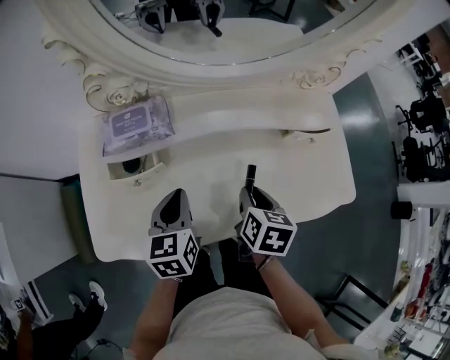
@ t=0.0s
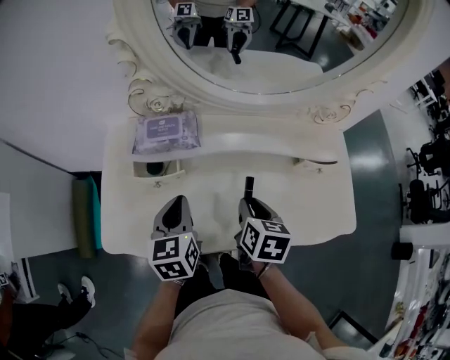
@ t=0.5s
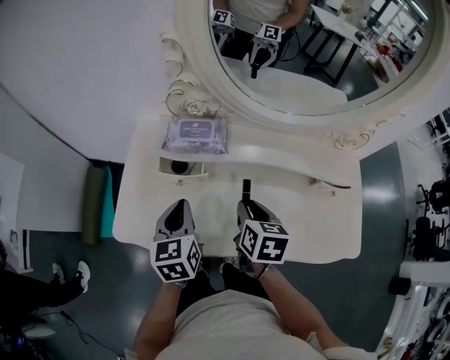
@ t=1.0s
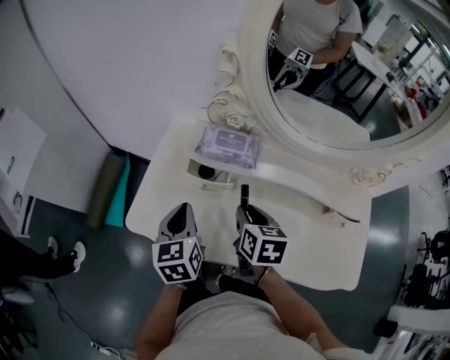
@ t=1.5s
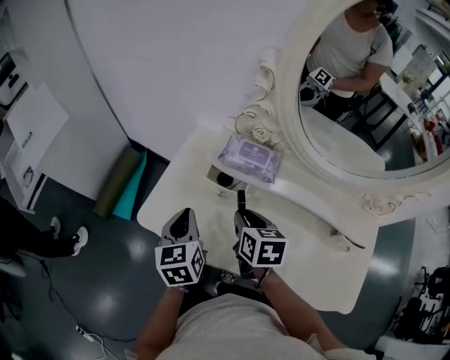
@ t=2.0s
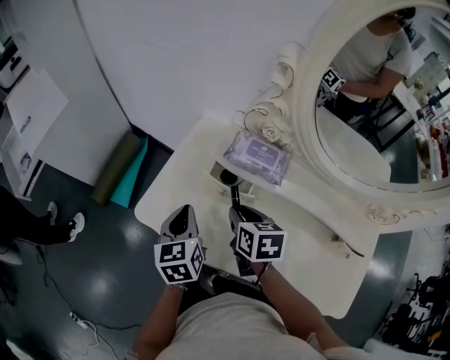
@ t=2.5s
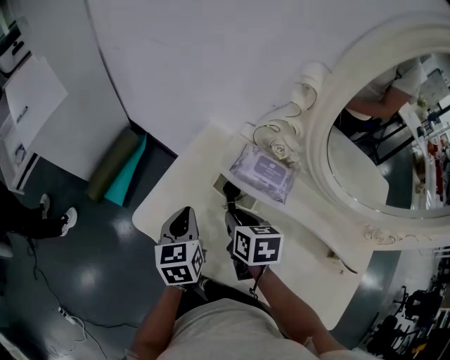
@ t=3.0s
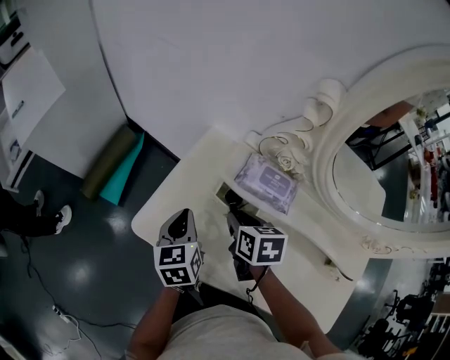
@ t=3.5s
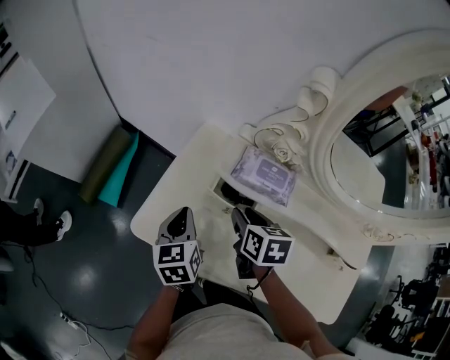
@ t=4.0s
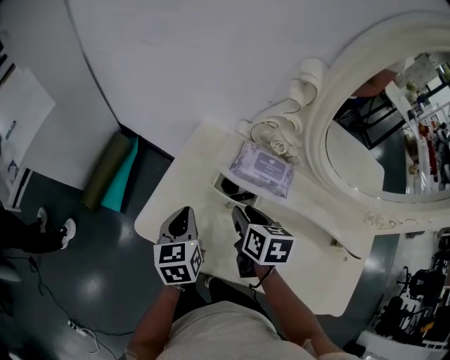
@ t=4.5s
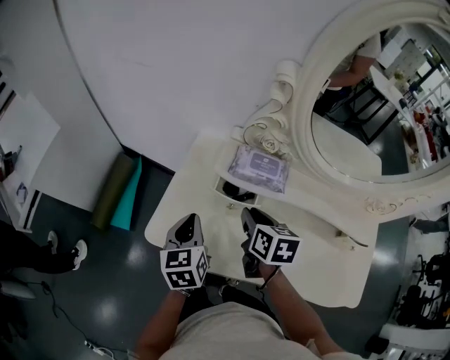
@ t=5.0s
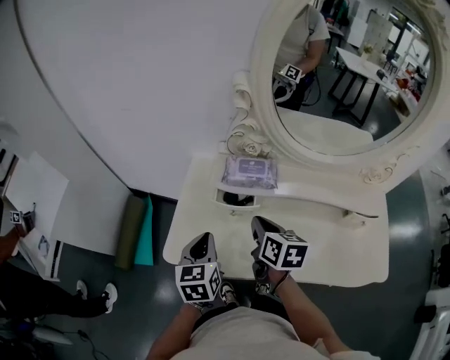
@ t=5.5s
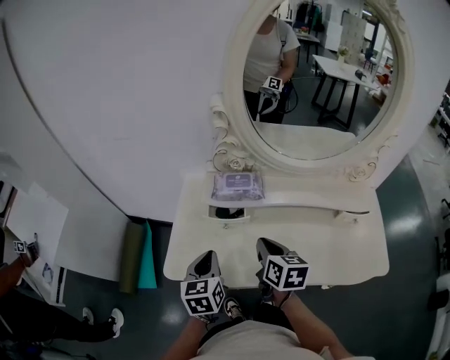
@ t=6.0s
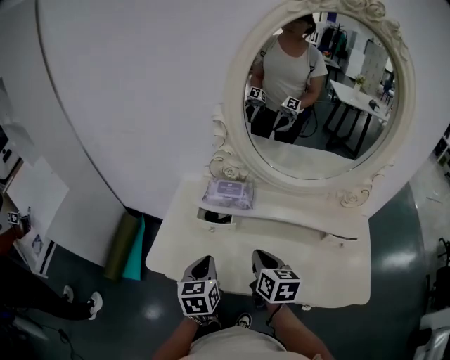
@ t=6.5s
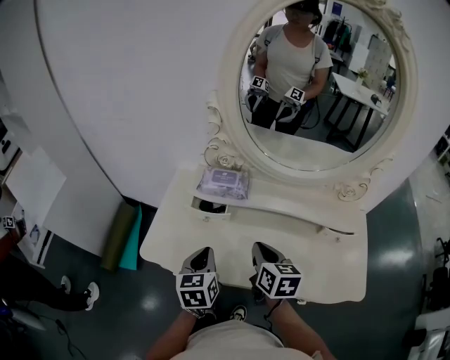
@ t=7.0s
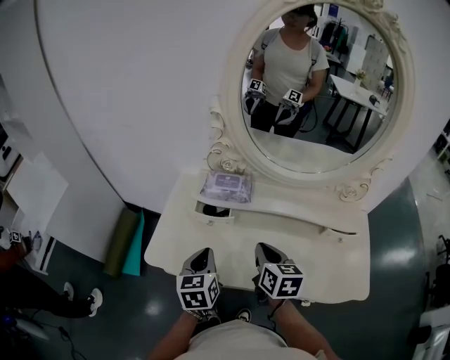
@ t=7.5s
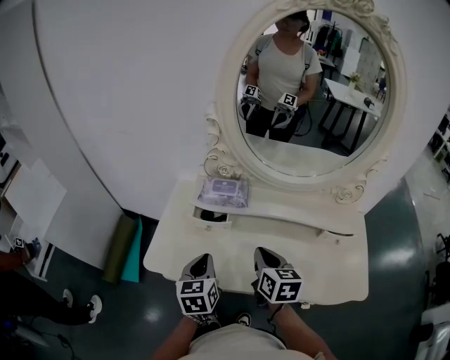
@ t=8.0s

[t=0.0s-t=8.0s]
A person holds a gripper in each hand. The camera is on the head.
t=0.0s to t=2.0s: The left gripper ends up approximately 20 cm from where it was, and swivels about 40 degrees; the right gripper shifts by some 25 cm, and turns by some 50 degrees.
t=2.0s to t=4.0s: The left gripper moves forward and downward, about 10 cm. Meanwhile the right gripper is displaced forward by roughly 5 cm.
t=4.0s to t=6.0s: Both grippers move backward and upward, roughly 10 cm. The right gripper rotates roughly 30 degrees, and closes up, while the left gripper rotates about 30 degrees.
t=6.0s to t=8.0s: The two grippers go approximately 5 cm to the right.

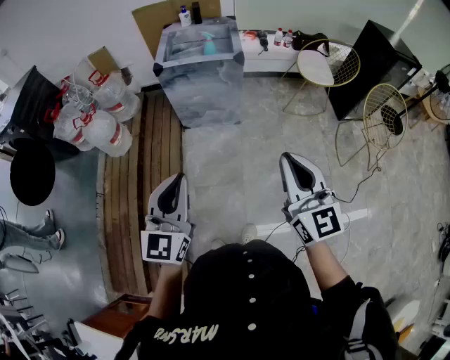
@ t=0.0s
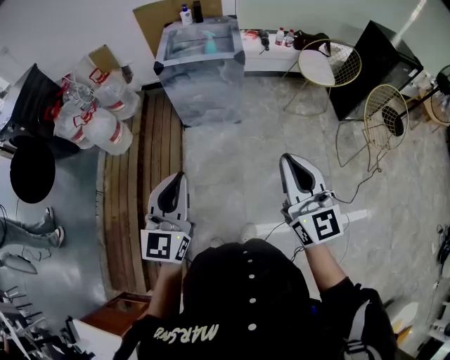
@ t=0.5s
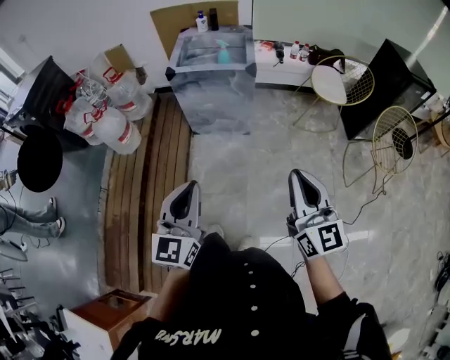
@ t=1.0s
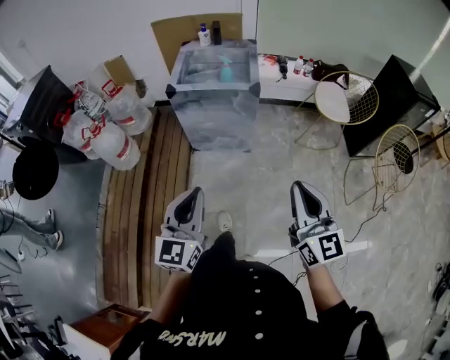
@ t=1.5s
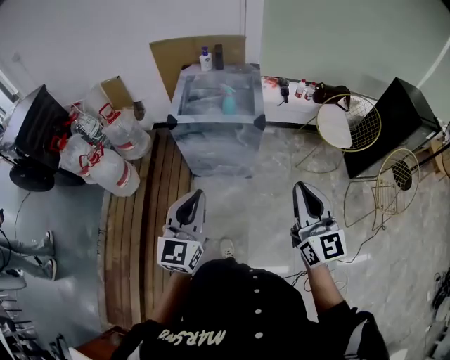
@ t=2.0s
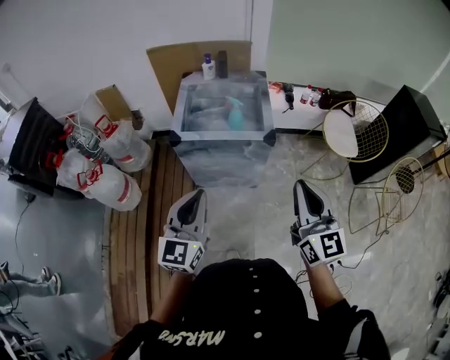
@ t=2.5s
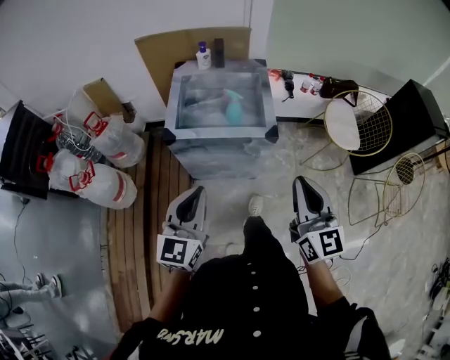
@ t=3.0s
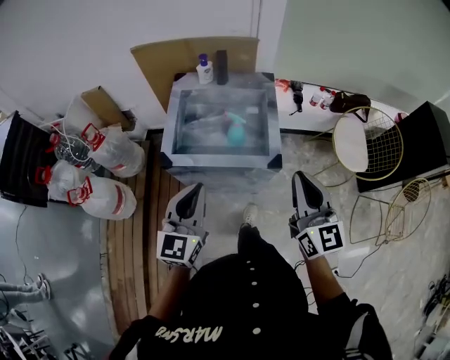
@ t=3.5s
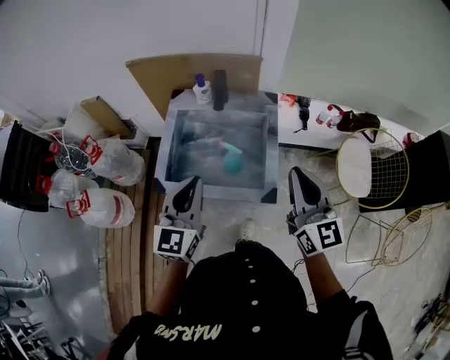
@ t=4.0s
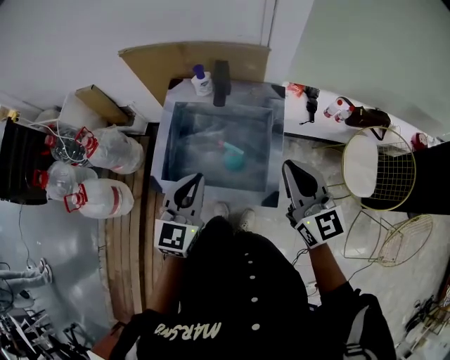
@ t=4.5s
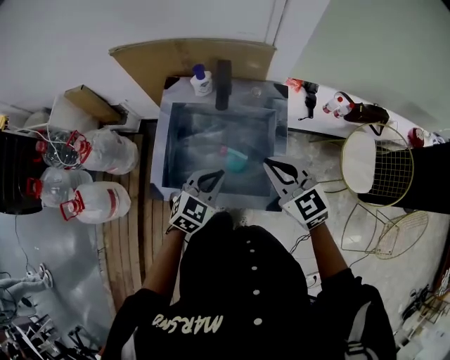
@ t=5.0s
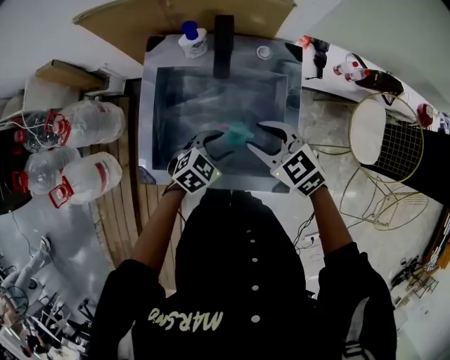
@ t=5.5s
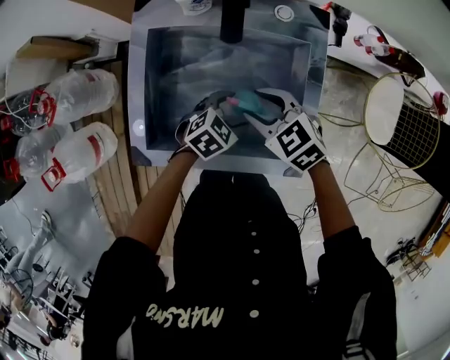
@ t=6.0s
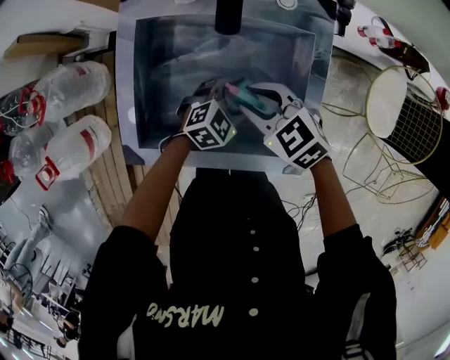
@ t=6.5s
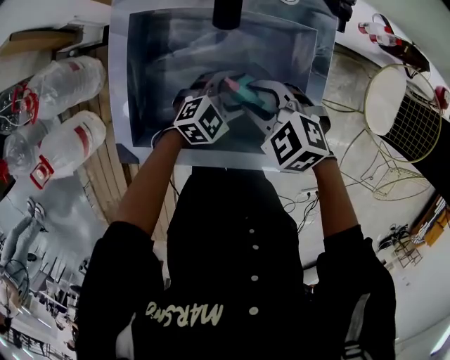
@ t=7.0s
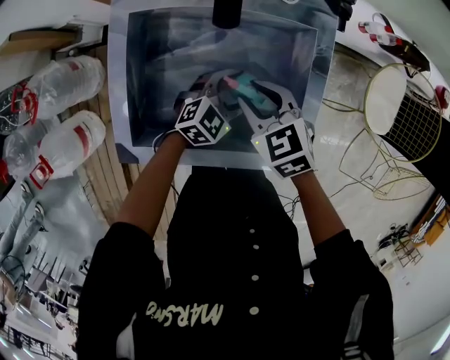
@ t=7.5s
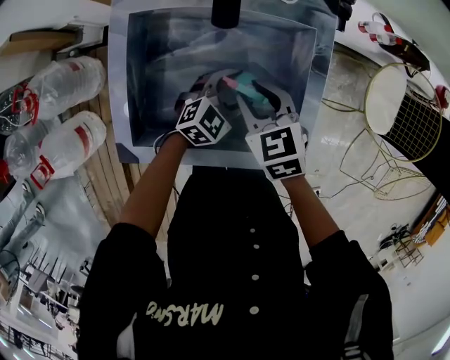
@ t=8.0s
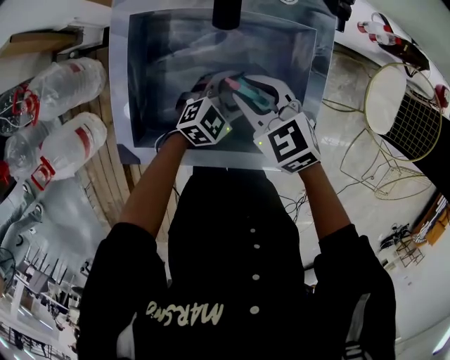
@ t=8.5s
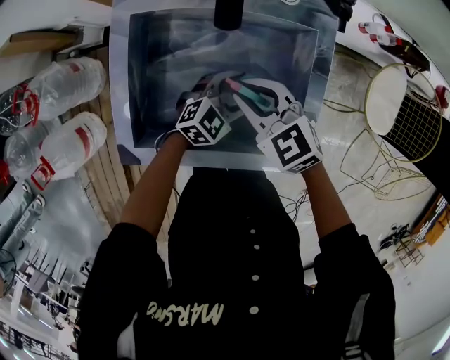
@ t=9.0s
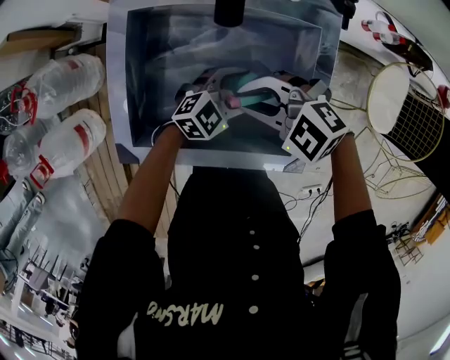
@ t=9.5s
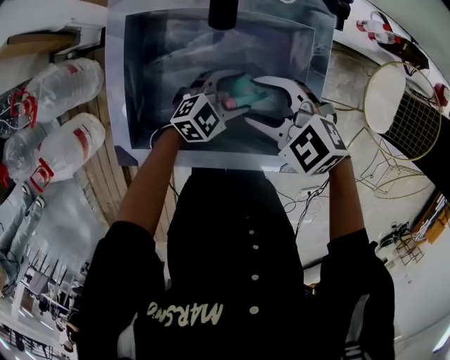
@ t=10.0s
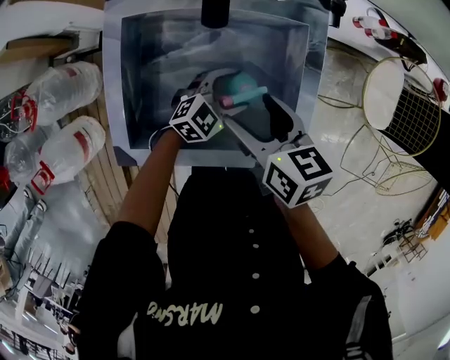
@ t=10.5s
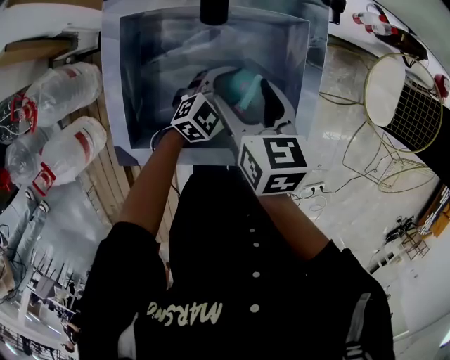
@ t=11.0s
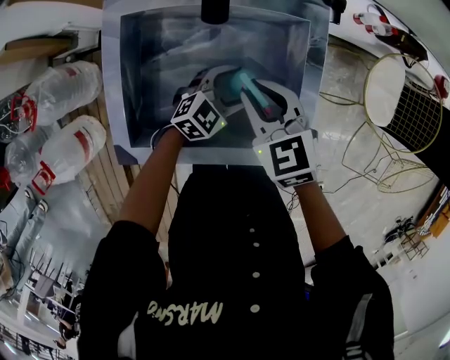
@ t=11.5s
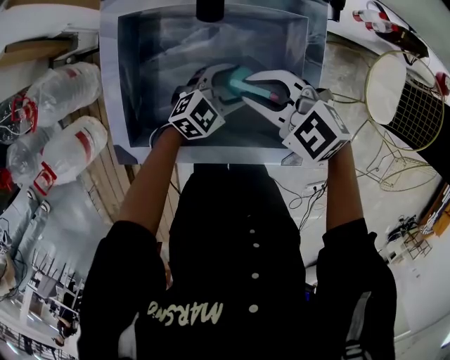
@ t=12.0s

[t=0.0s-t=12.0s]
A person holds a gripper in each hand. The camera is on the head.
t=0.0s to t=2.0s: The two grippers go about 25 cm forward.
t=2.0s to t=4.0s: The pair of grippers is taken forward, some 50 cm.
t=4.0s to t=6.0s: The two grippers go about 35 cm downward. The left gripper tilts its fingers some 50 degrees downward, and opens its fingers; the right gripper tilts its fingers roughly 50 degrees downward, and opens its fingers.
t=6.0s to t=8.0s: The right gripper swivels about 20 degrees.
t=8.0s to t=10.0s: The right gripper turns by about 40 degrees, and opens up.
t=10.0s to t=12.0s: The right gripper closes up.

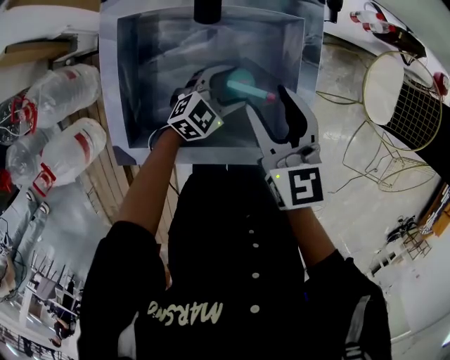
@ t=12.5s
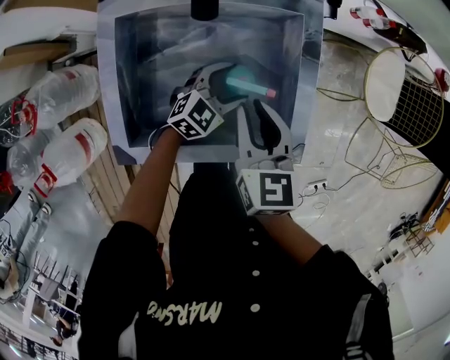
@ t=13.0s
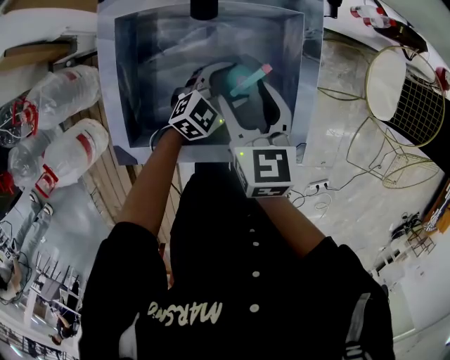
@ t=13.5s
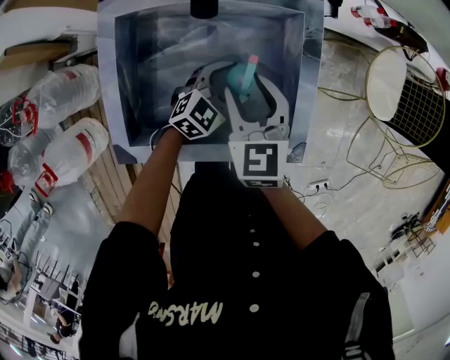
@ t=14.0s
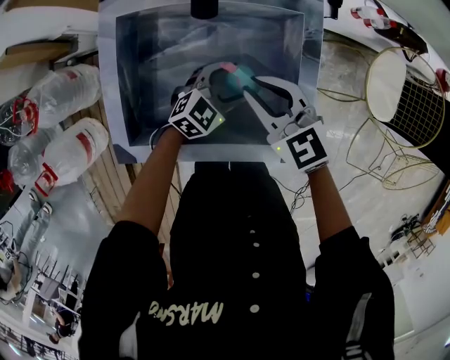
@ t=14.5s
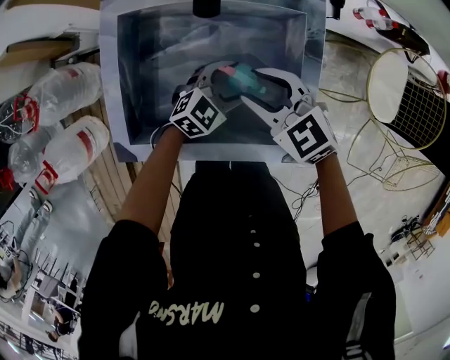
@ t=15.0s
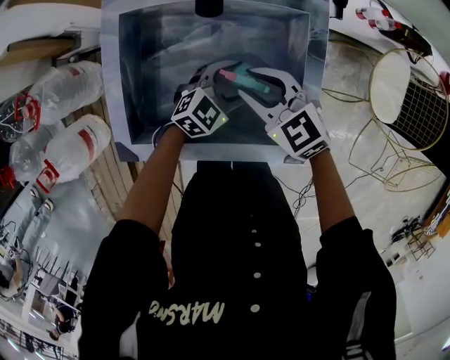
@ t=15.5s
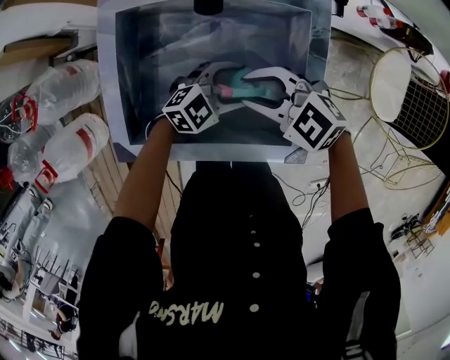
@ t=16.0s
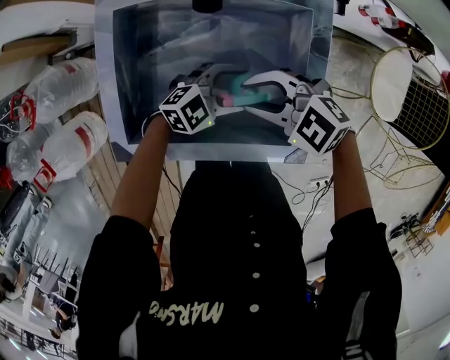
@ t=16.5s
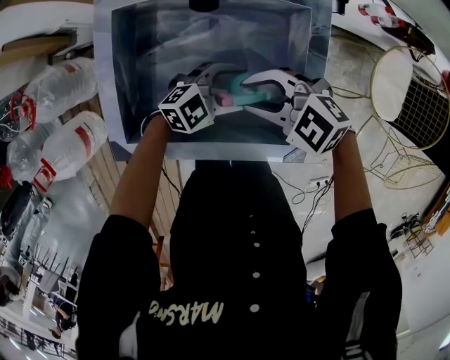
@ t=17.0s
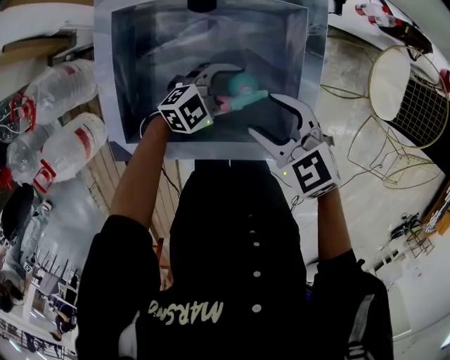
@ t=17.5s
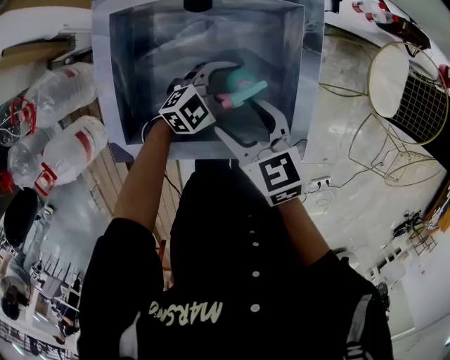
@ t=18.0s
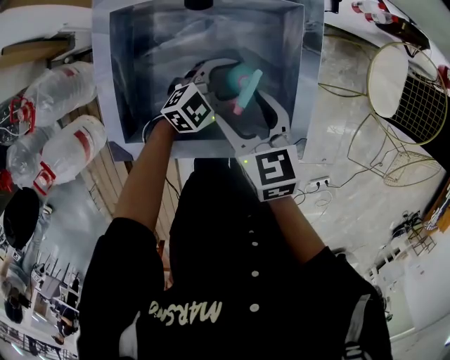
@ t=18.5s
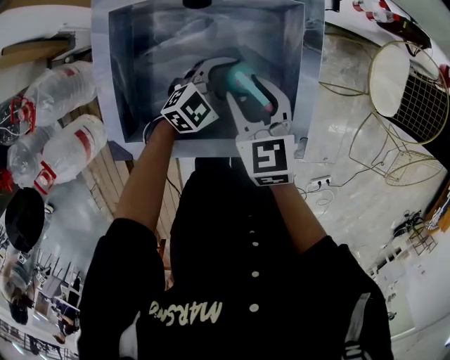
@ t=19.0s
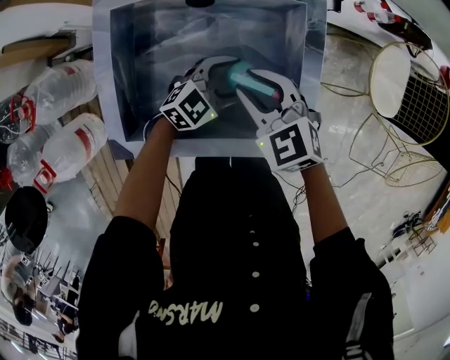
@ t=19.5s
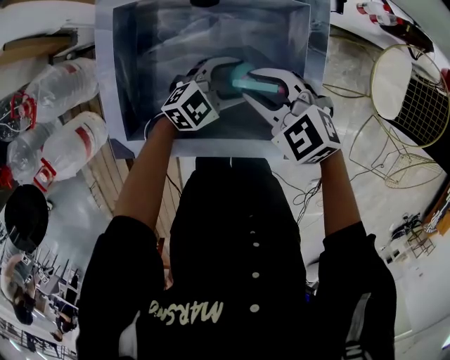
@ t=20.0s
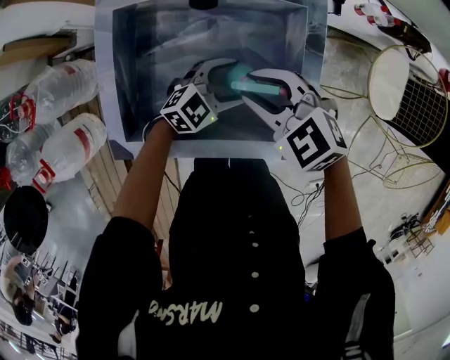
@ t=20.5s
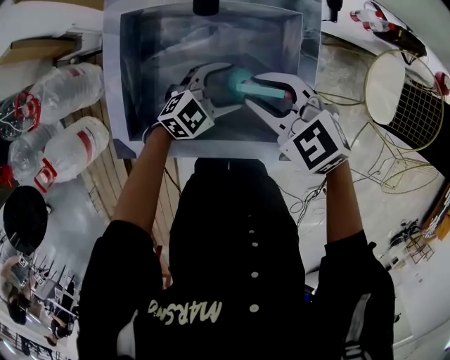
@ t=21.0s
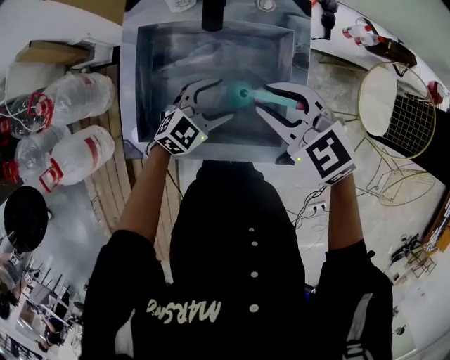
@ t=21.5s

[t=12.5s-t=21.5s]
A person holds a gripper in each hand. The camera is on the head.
t=12.5s to t=14.5s: The right gripper shifts some 5 cm downward, changes its angle by roughly 30 degrees, and closes.
t=14.5s to t=17.0s: The right gripper ends up some 5 cm from where it was, and changes its angle by some 40 degrees.
t=17.0s to t=19.5s: The right gripper changes its angle by about 40 degrees, and opens, then closes again.
t=19.5s to t=21.5s: The left gripper is displaced upward by some 5 cm; the right gripper heads upward, covering approximately 10 cm.
